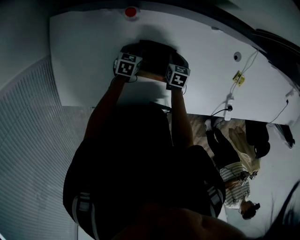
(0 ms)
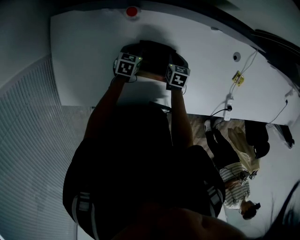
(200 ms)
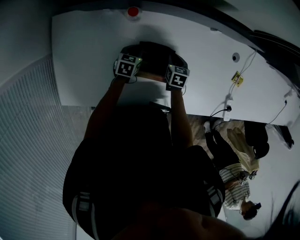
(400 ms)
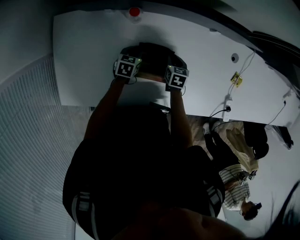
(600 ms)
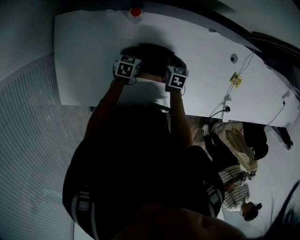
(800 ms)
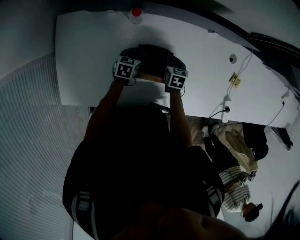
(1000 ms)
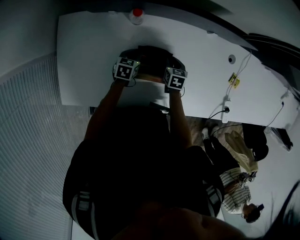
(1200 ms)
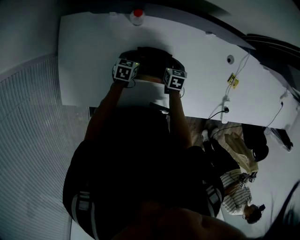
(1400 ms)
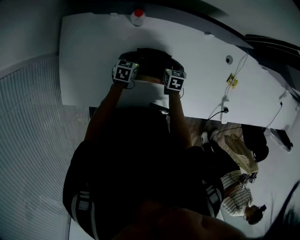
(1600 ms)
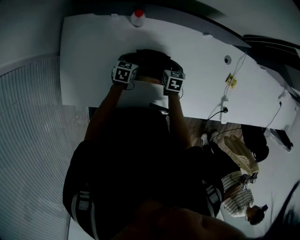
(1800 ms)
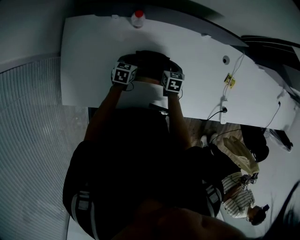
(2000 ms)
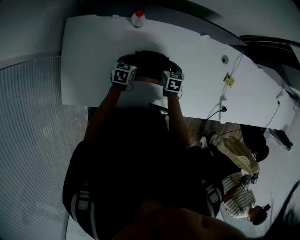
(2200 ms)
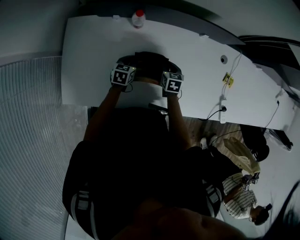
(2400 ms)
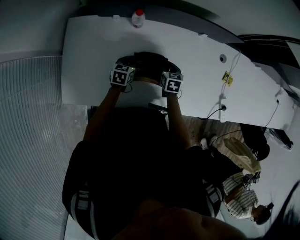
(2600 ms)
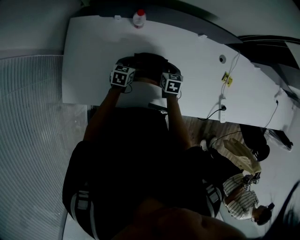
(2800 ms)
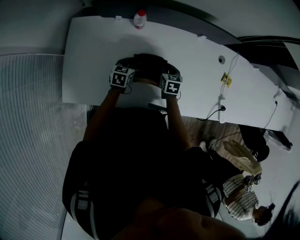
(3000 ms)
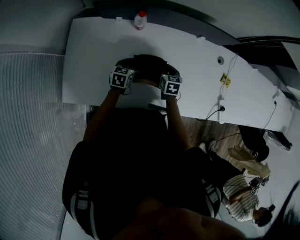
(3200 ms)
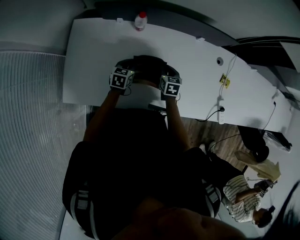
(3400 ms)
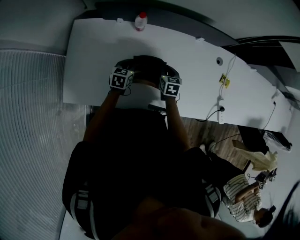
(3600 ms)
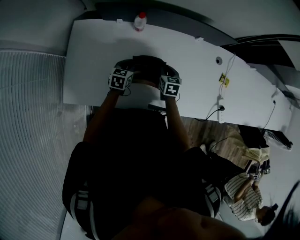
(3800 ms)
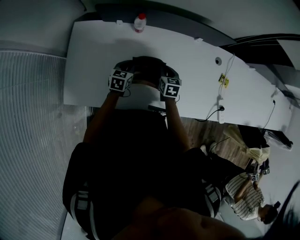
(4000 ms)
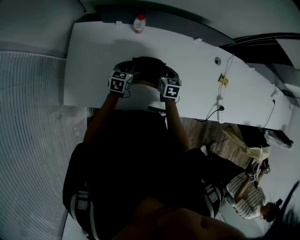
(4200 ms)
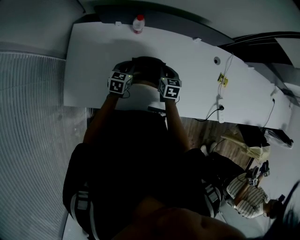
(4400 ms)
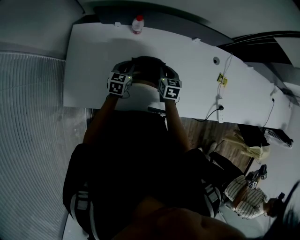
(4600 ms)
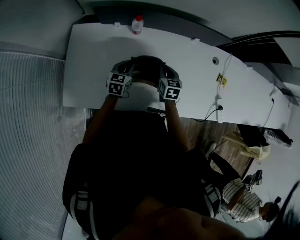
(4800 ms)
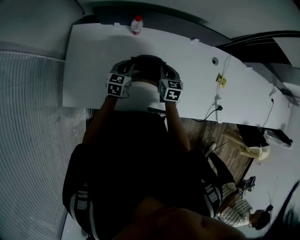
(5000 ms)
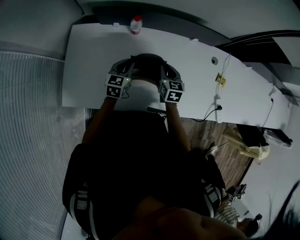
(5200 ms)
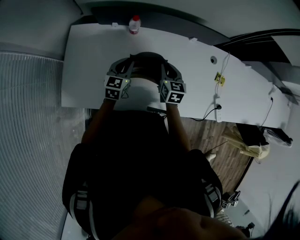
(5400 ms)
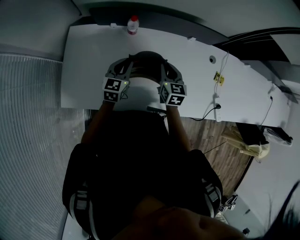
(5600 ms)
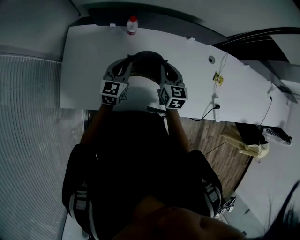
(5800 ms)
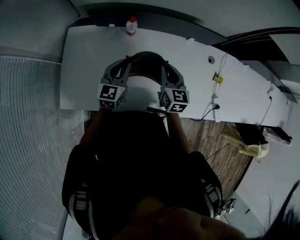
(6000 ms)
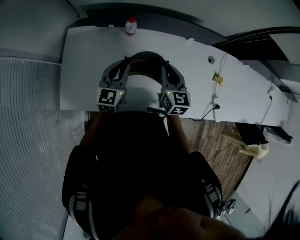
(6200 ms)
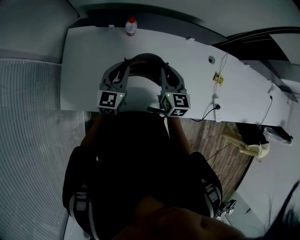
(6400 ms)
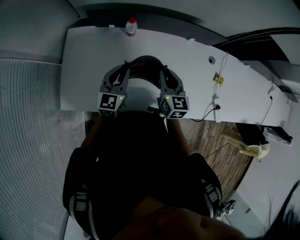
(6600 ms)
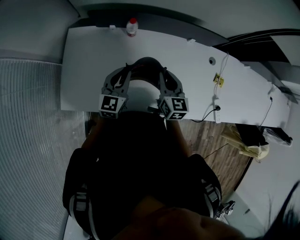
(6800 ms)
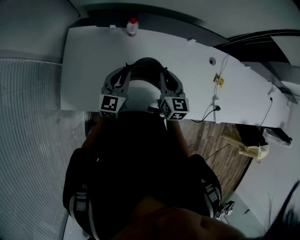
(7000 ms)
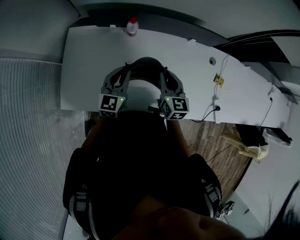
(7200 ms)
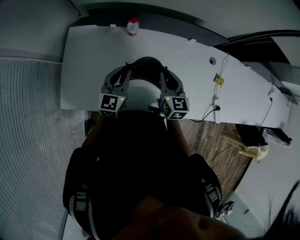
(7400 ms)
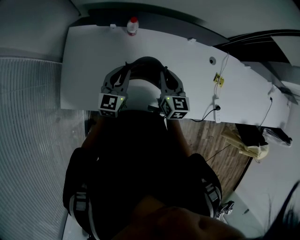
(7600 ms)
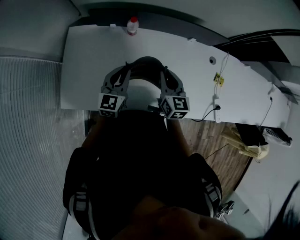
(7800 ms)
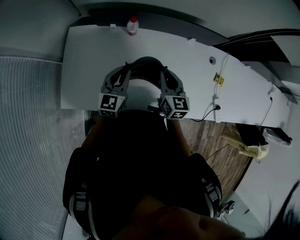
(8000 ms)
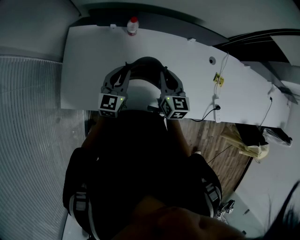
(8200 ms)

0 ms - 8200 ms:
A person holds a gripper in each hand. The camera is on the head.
0 ms - 1600 ms: The grippers both shift upward by some 5 cm.
1600 ms - 3200 ms: Both grippers move upward and backward, some 10 cm.
3200 ms - 5000 ms: Both grippers move upward, about 10 cm.
5000 ms - 6600 ms: Both grippers move upward, roughly 10 cm. The left gripper swivels approximately 20 degrees.
6600 ms - 8200 ms: Both grippers stay about where they are.

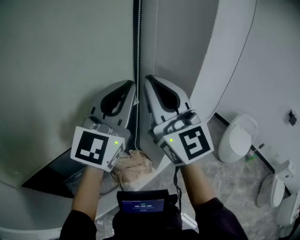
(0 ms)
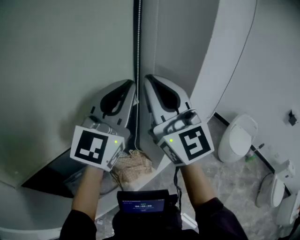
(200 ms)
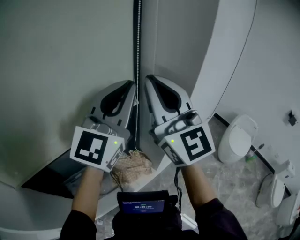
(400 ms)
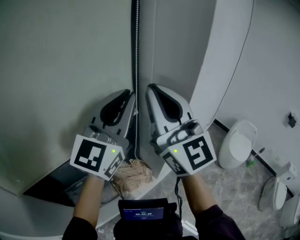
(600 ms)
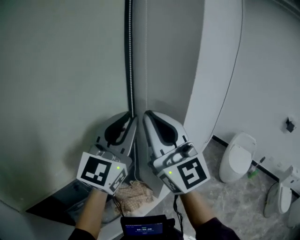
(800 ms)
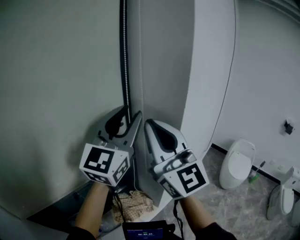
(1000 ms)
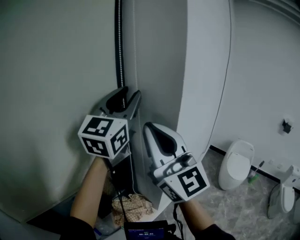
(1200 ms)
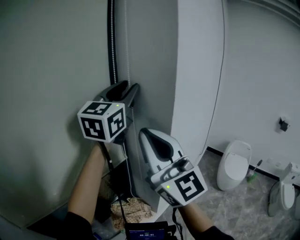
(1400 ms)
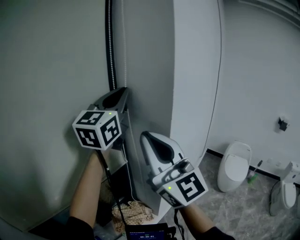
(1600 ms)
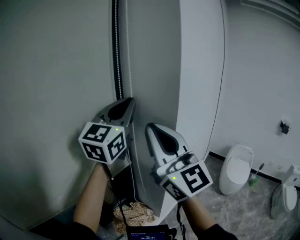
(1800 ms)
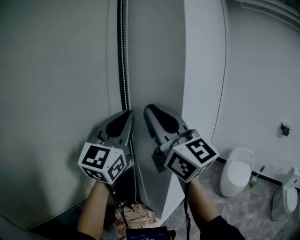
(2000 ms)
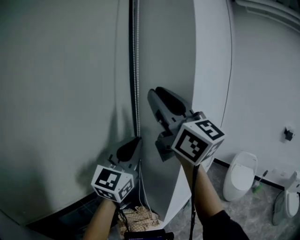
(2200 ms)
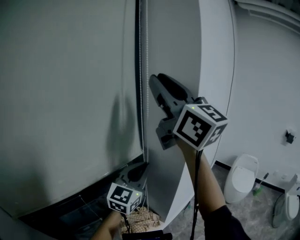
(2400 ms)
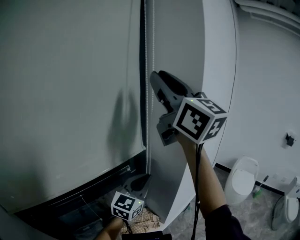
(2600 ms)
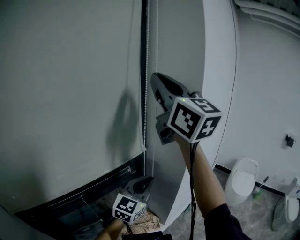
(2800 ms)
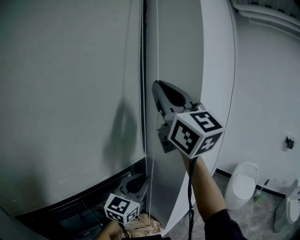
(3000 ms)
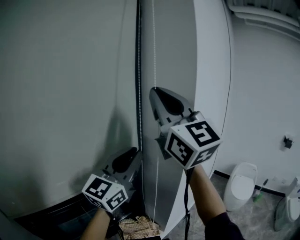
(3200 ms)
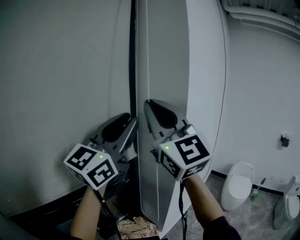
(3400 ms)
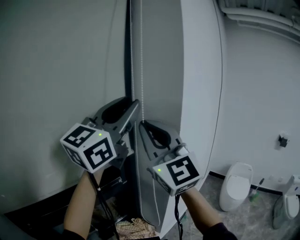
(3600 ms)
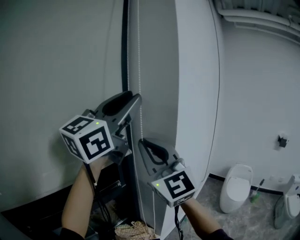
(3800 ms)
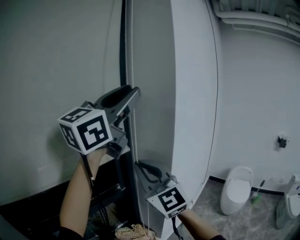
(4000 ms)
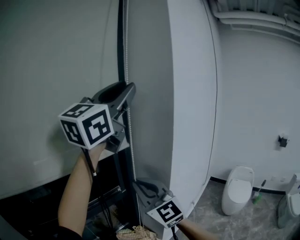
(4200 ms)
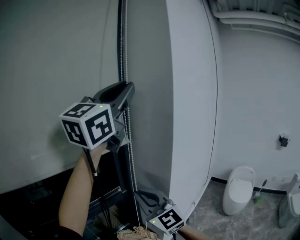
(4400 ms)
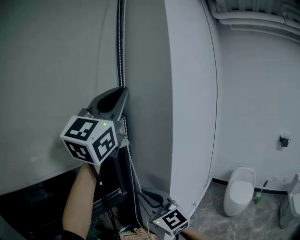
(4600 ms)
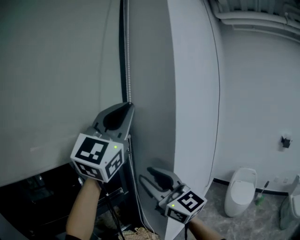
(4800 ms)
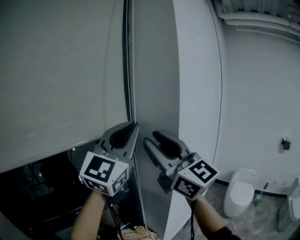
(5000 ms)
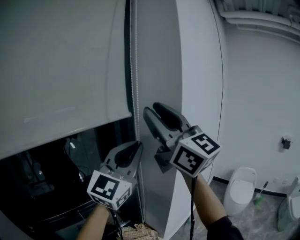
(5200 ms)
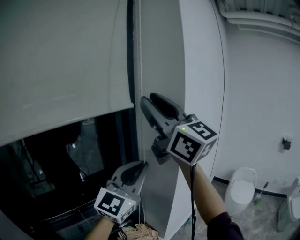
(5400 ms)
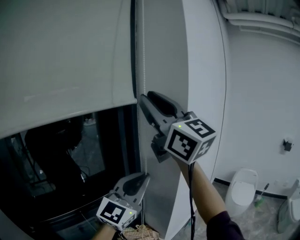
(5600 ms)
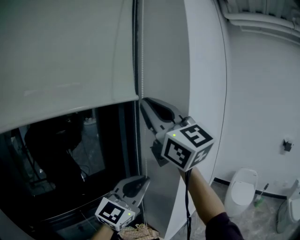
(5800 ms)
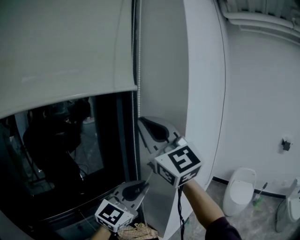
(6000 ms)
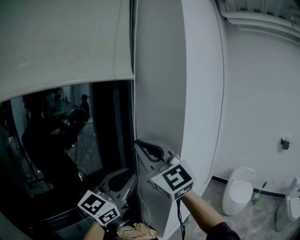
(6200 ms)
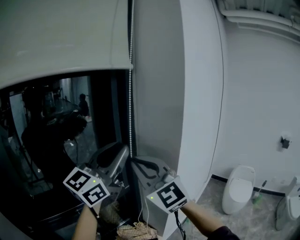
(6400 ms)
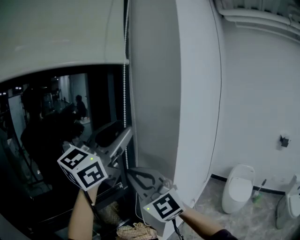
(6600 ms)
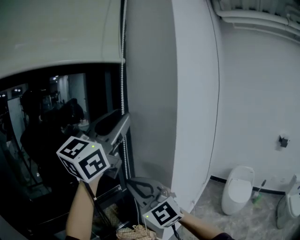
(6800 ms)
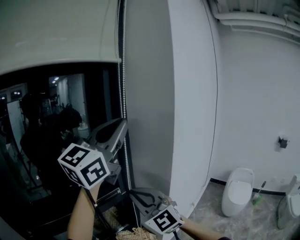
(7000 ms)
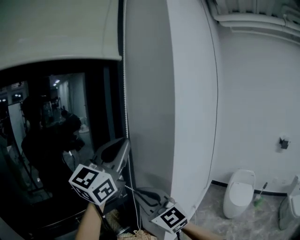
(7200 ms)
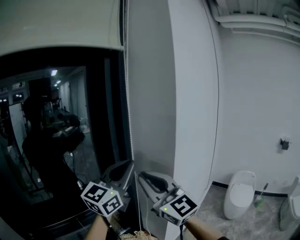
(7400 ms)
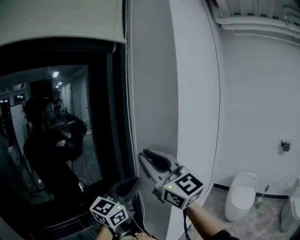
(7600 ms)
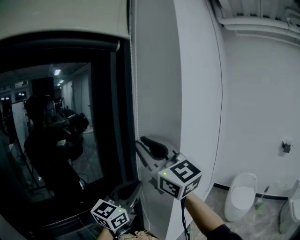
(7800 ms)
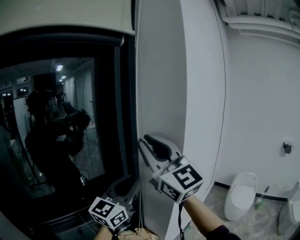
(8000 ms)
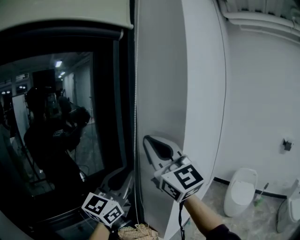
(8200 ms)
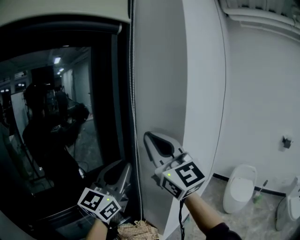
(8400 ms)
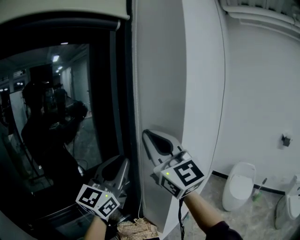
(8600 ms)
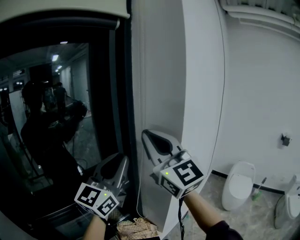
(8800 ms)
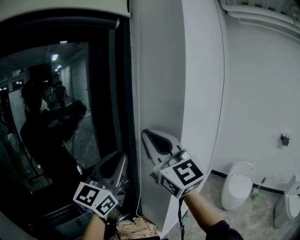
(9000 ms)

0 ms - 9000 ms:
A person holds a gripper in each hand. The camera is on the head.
0 ms - 1600 ms: The right gripper moves roughly 5 cm. Meanwhile the left gripper heads forward and upward, covering approximately 15 cm, and opens and closes again.
1600 ms - 3000 ms: The left gripper moves downward and backward, approximately 25 cm. Meanwhile the right gripper is displaced upward by approximately 15 cm.
3000 ms - 4400 ms: The right gripper is displaced downward by approximately 25 cm, and rotates roughly 20 degrees. The left gripper moves upward, some 40 cm.
4400 ms - 6000 ms: The left gripper shifts roughly 30 cm downward. Meanwhile the right gripper goes roughly 25 cm upward, and opens, then closes again.
6000 ms - 7600 ms: The left gripper shifts roughly 5 cm forward, travels upward and back again, roughly 25 cm each way, and opens and closes again, while the right gripper reaches roughly 25 cm downward, then returns.
7600 ms - 9000 ms: The left gripper is displaced upward by roughly 5 cm.

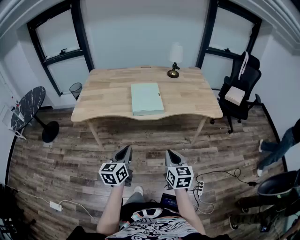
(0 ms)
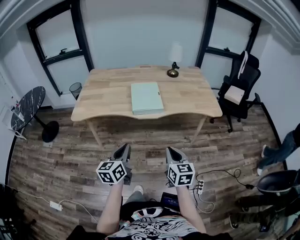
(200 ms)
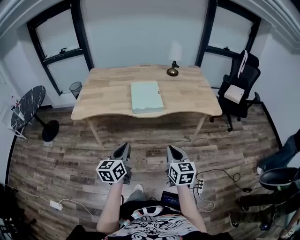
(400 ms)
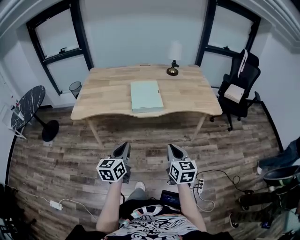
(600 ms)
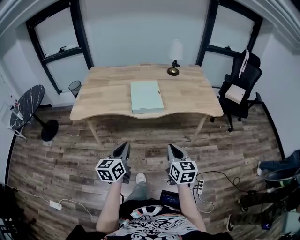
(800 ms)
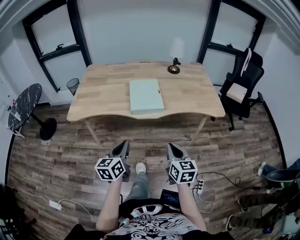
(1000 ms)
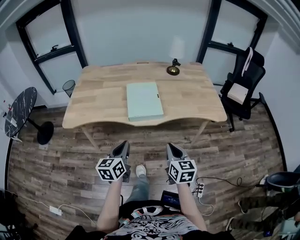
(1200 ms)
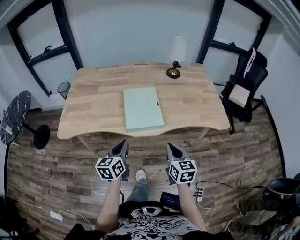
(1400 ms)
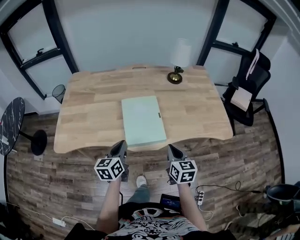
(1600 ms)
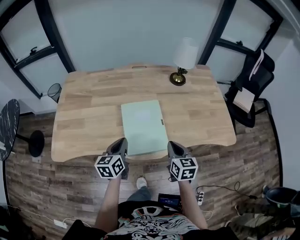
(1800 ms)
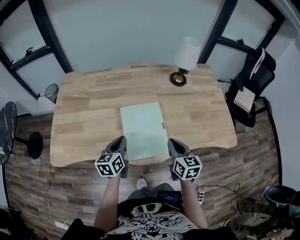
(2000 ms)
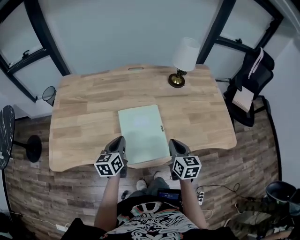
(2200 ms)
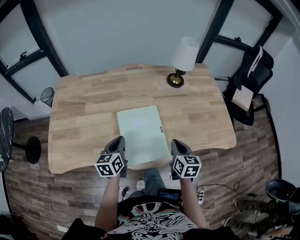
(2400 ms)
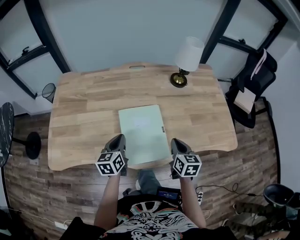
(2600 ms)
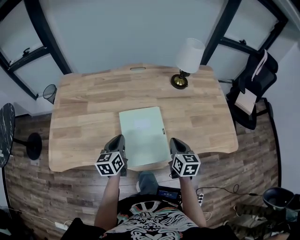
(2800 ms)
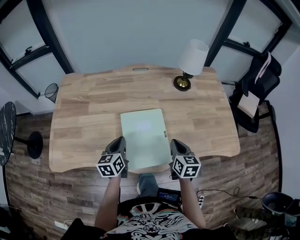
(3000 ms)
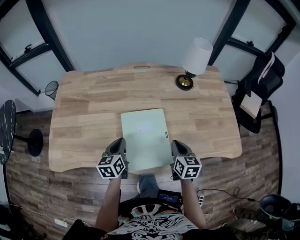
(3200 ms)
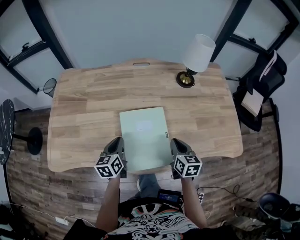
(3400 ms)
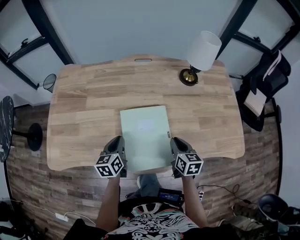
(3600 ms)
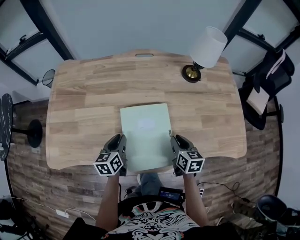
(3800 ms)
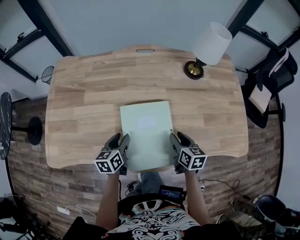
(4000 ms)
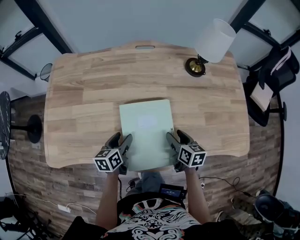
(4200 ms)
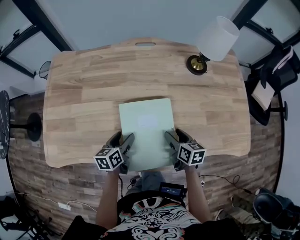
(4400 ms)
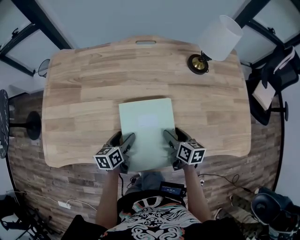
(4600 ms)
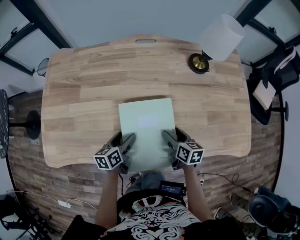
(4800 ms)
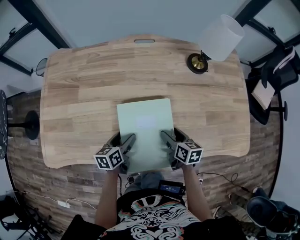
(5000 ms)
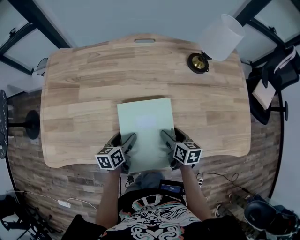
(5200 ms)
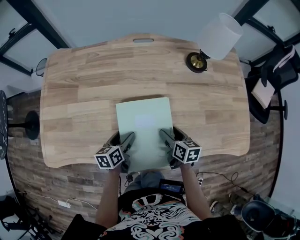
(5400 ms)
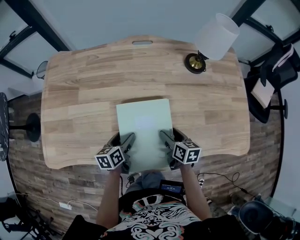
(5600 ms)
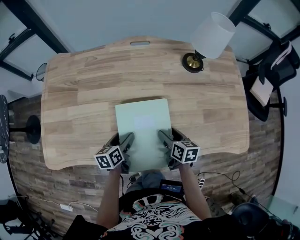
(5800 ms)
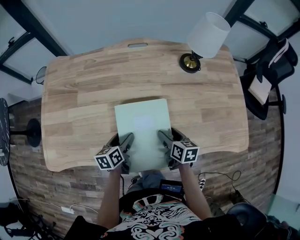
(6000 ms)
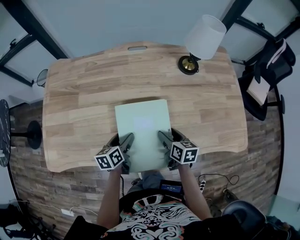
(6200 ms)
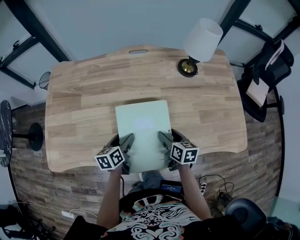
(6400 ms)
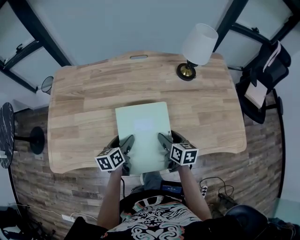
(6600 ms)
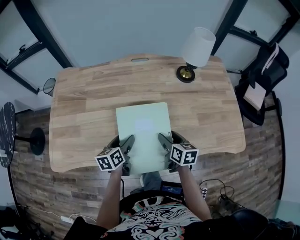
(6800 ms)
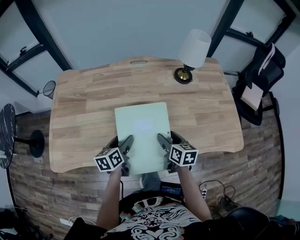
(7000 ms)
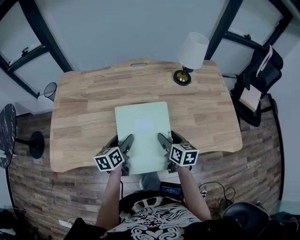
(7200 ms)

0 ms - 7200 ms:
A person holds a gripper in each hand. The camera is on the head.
0 ms - 1400 ms: Both grippers travel together forward, roughly 20 cm.
1400 ms - 2800 ms: Both grippers travel together forward, roughly 25 cm.
2800 ms - 4400 ms: The right gripper goes some 10 cm downward and forward, rotates approximately 20 degrees, and opens. Meanwhile the left gripper travels downward by some 10 cm, and opens.
4400 ms - 5800 ms: The grippers make only small movements.
5800 ms - 7200 ms: Both grippers move upward, about 10 cm.
